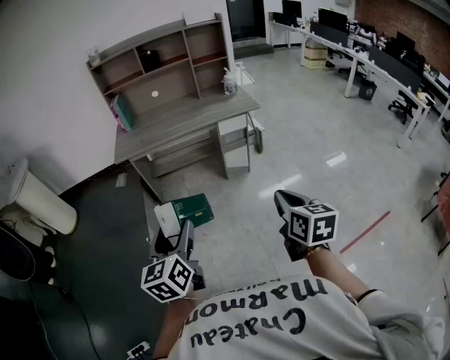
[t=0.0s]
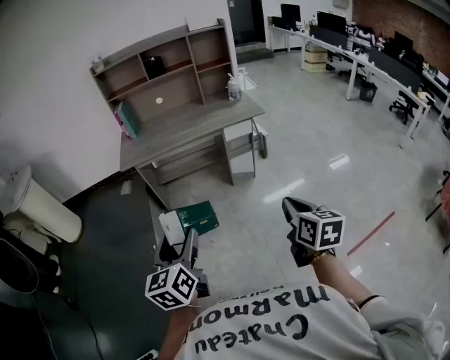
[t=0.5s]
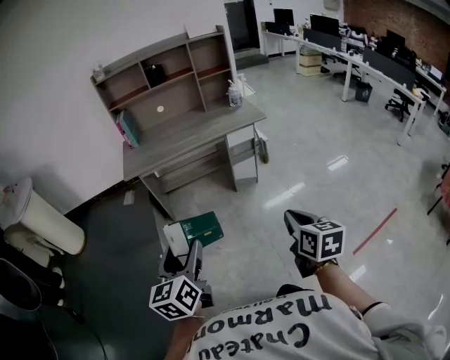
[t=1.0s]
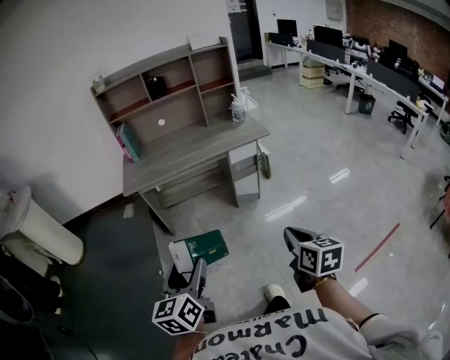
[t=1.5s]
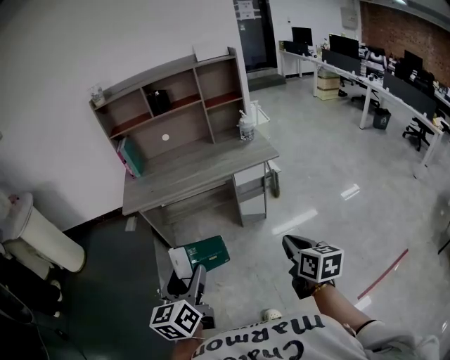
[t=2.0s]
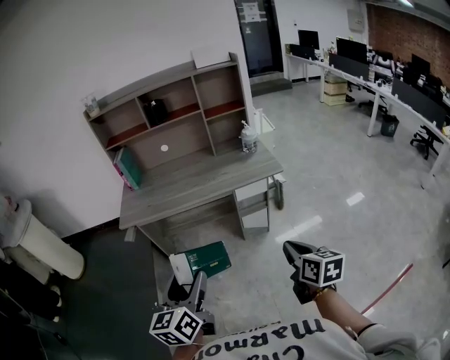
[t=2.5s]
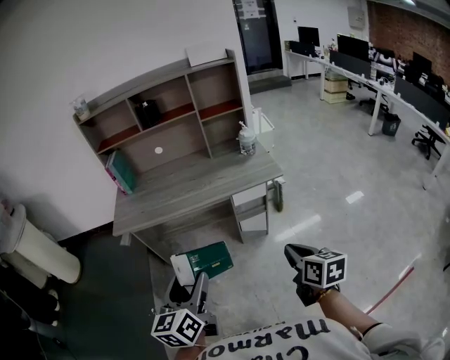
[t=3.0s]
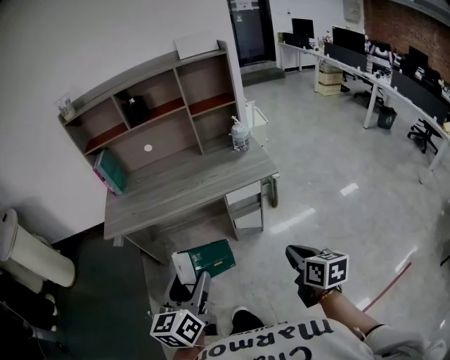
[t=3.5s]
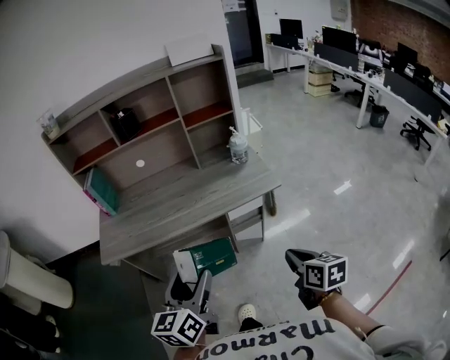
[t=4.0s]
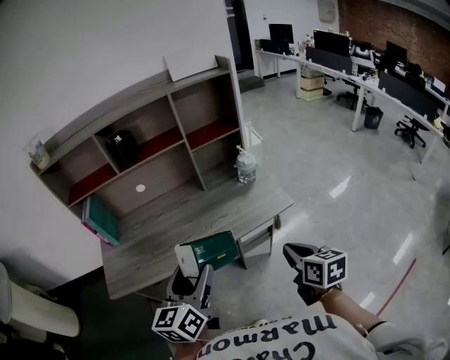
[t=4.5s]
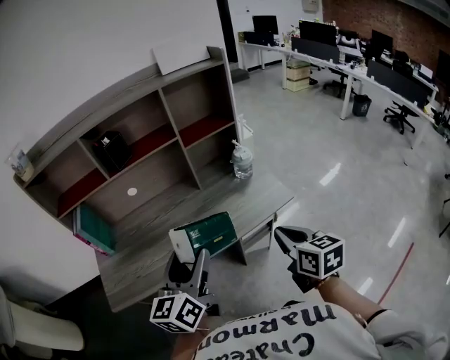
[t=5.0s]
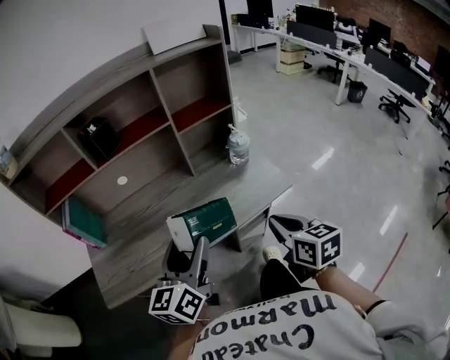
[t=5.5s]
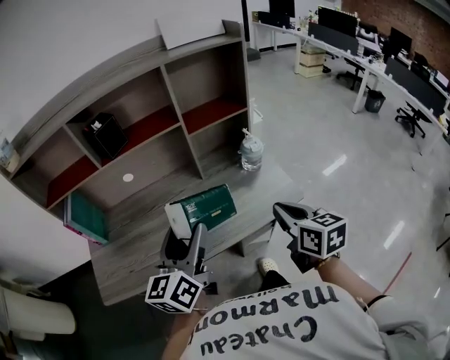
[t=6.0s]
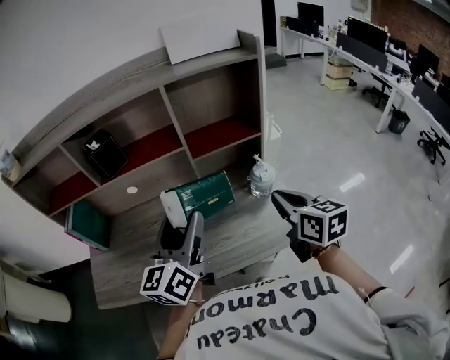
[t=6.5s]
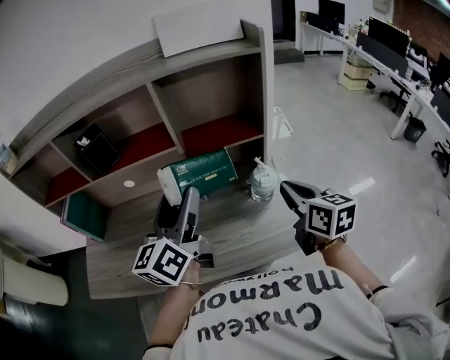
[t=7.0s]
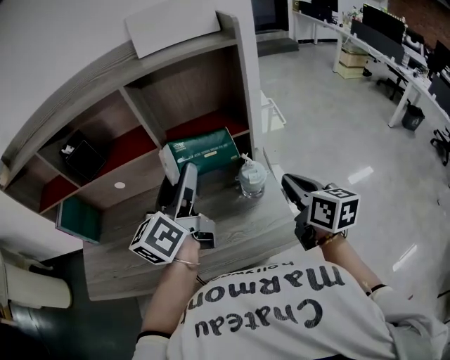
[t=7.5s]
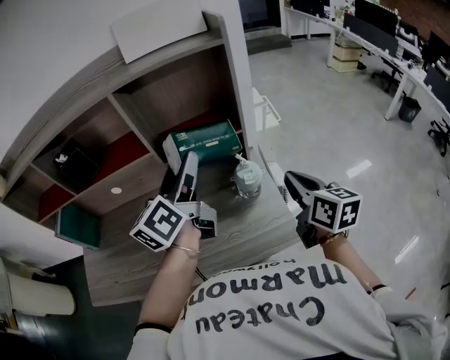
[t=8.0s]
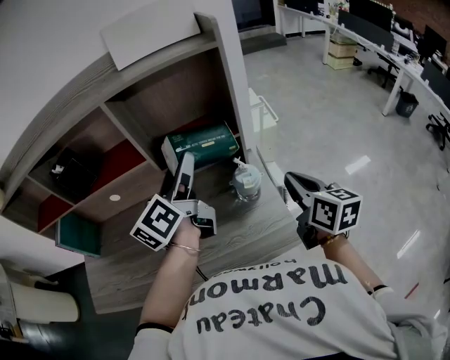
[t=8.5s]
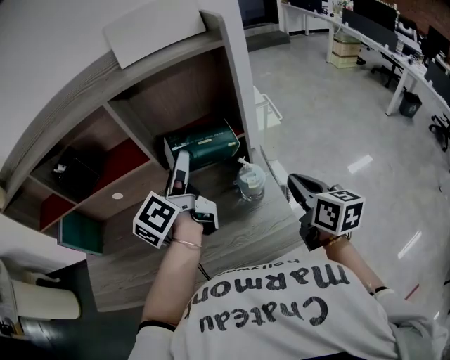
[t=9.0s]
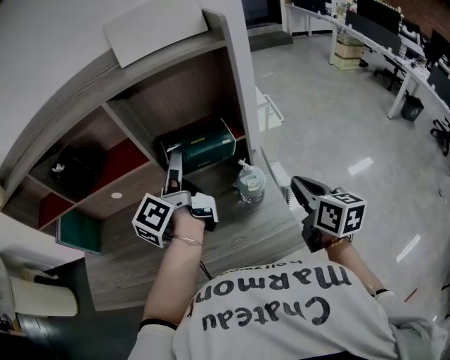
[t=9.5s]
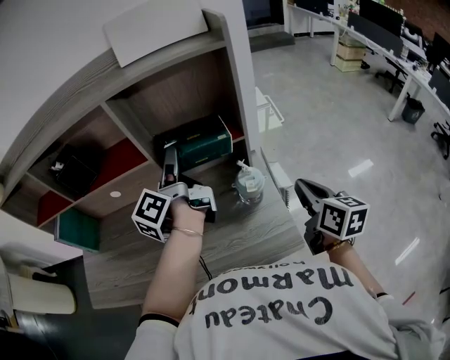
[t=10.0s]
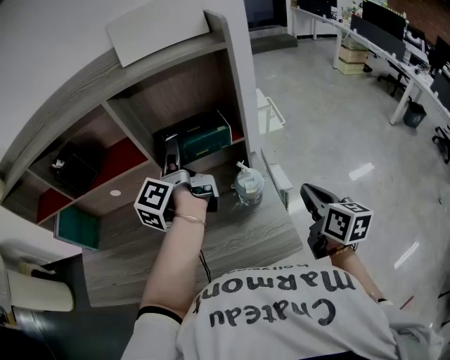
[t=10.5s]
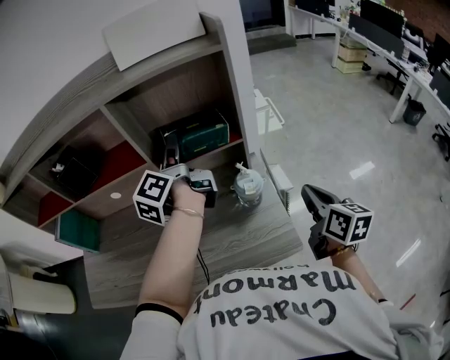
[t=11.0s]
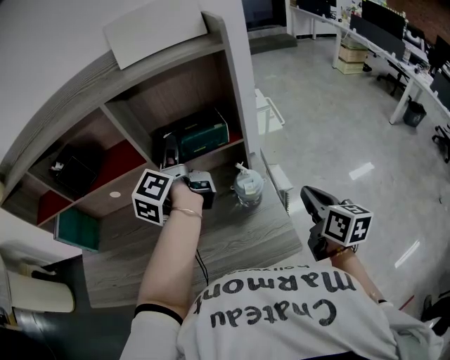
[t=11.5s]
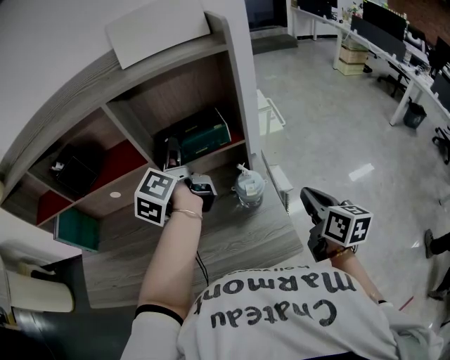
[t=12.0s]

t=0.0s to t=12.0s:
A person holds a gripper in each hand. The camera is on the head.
t=0.0s to t=2.0s: Both grippers move forward, some 15 cm.
t=2.0s to t=4.0s: Both grippers move forward, some 25 cm.
t=4.0s to t=6.0s: The grippers both shift forward by roughly 30 cm.
t=6.0s to t=8.0s: The grippers both shift forward and to the right by some 25 cm.
t=8.0s to t=10.0s: The left gripper goes some 5 cm forward, and swivels about 40 degrees.
t=10.0s to t=12.0s: There are only small adjustments of the grippers.

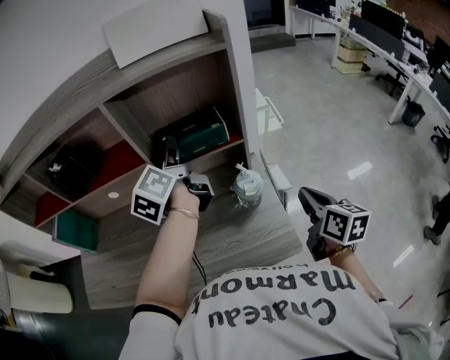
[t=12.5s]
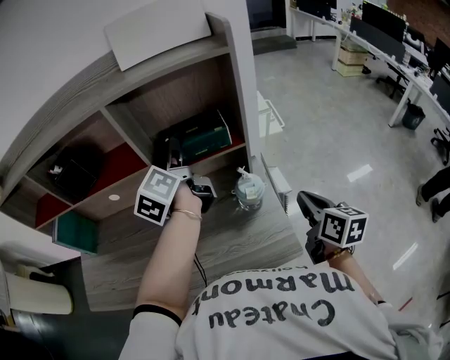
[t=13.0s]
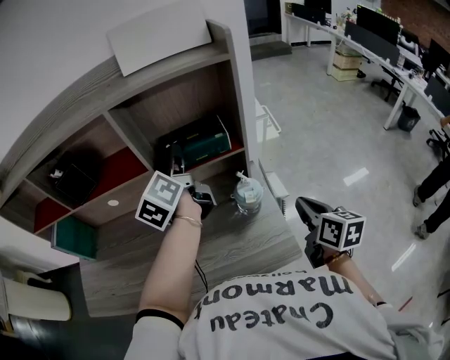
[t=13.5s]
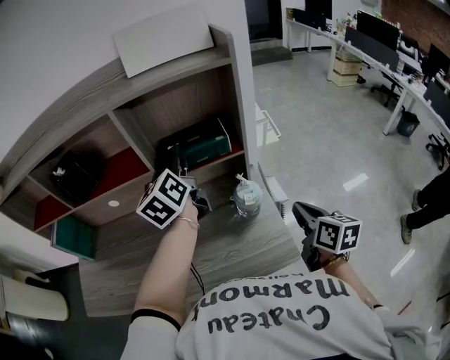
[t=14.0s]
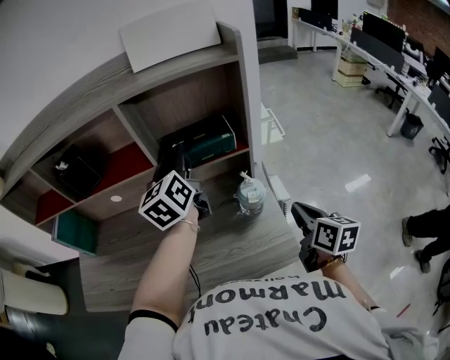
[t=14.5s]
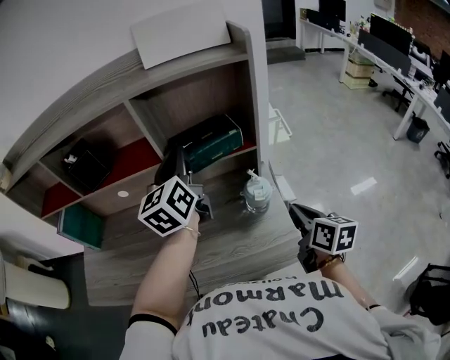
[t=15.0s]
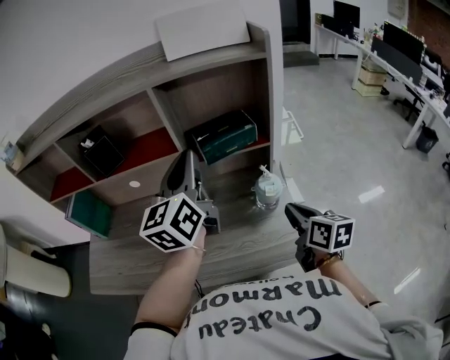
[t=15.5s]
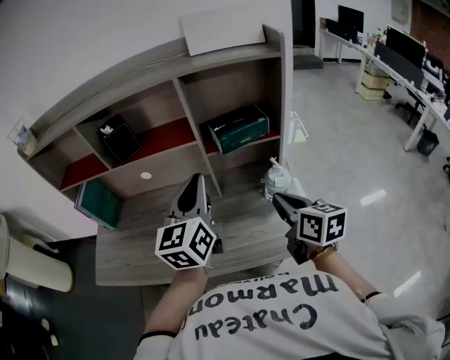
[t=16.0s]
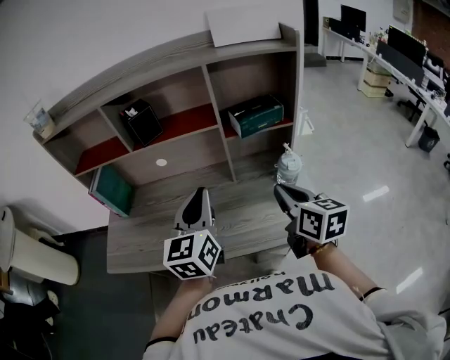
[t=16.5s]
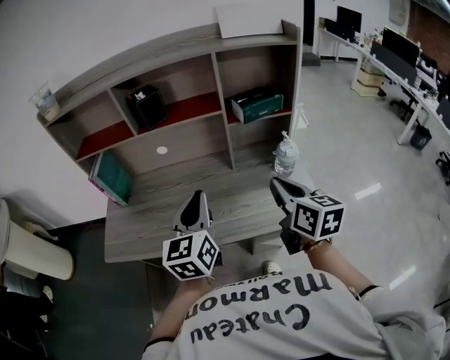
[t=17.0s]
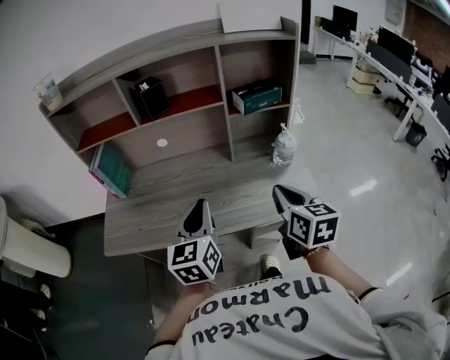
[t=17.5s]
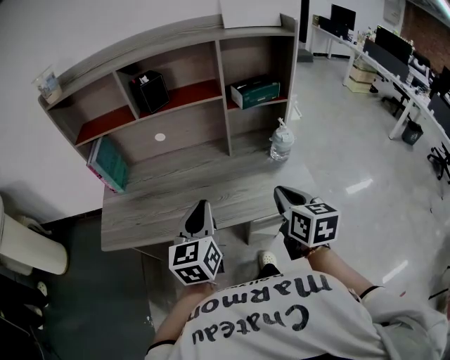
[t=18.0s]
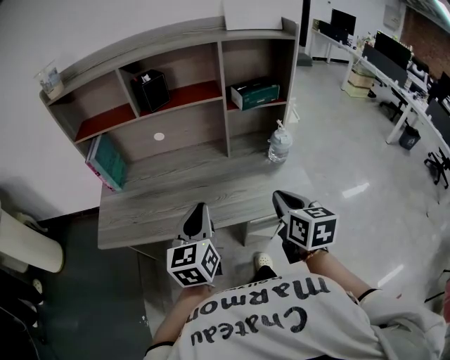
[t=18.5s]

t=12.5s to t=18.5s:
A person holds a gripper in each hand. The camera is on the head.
t=12.5s to t=14.5s: The left gripper swivels roughly 30 degrees, and closes.
t=14.5s to t=16.5s: The left gripper is displaced backward and to the left by approximately 25 cm, while the right gripper heads to the left and upward, covering approximately 20 cm.
t=16.5s to t=18.5s: The left gripper shifts approximately 15 cm backward, downward and to the left. Meanwhile the right gripper heads backward, covering roughly 10 cm.

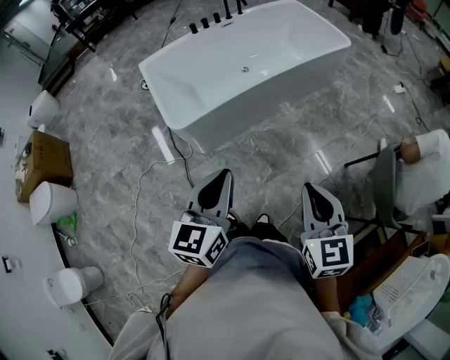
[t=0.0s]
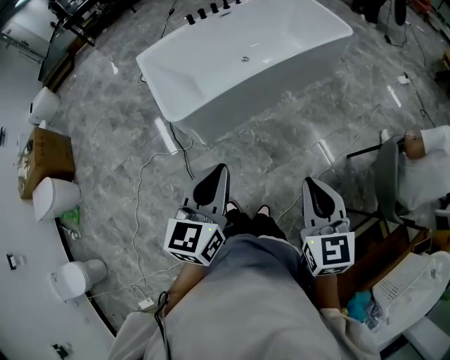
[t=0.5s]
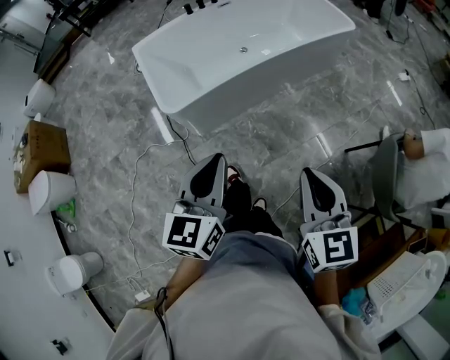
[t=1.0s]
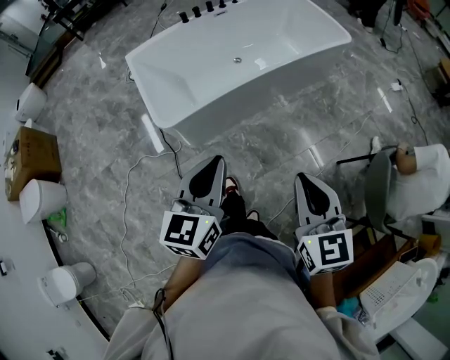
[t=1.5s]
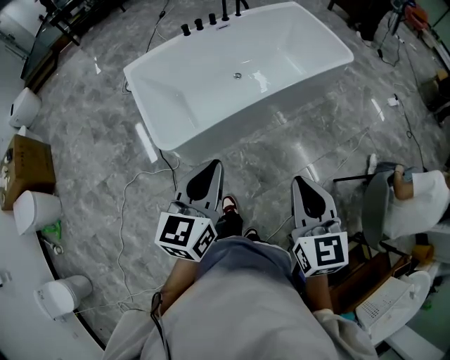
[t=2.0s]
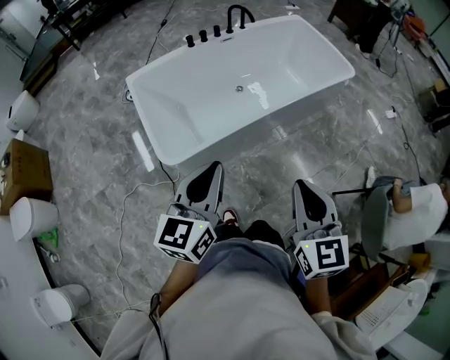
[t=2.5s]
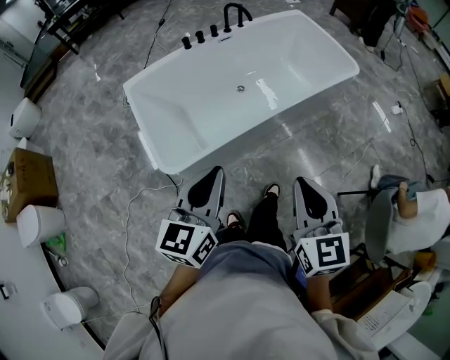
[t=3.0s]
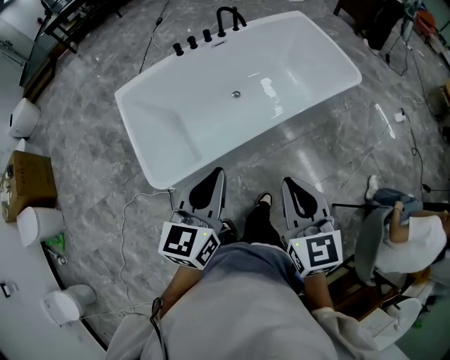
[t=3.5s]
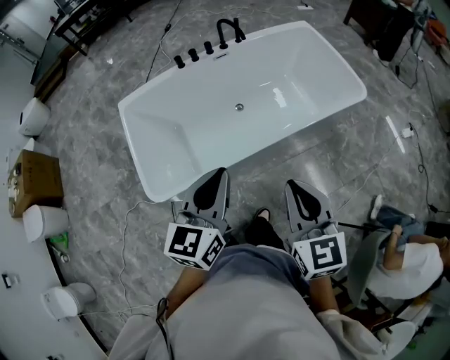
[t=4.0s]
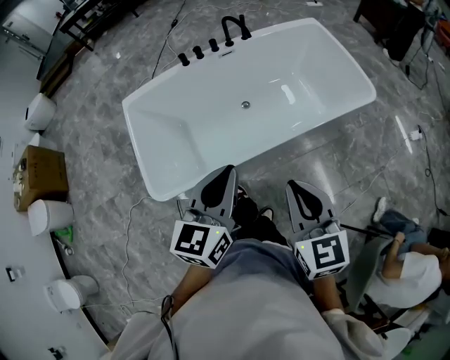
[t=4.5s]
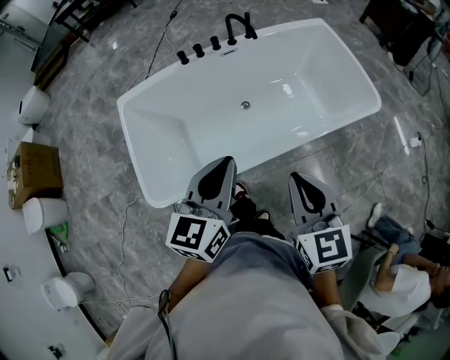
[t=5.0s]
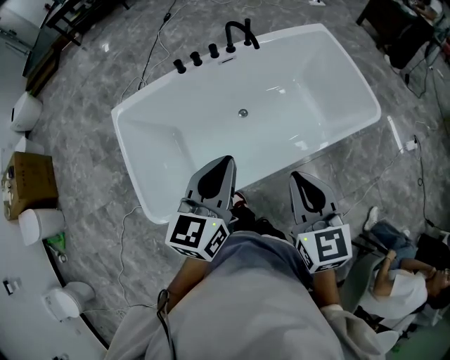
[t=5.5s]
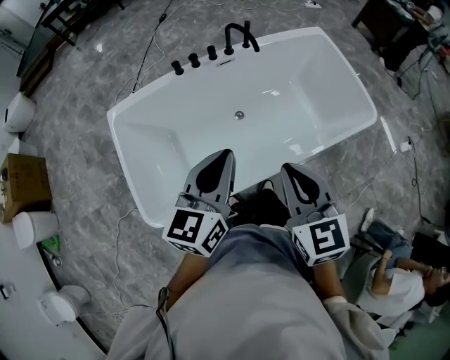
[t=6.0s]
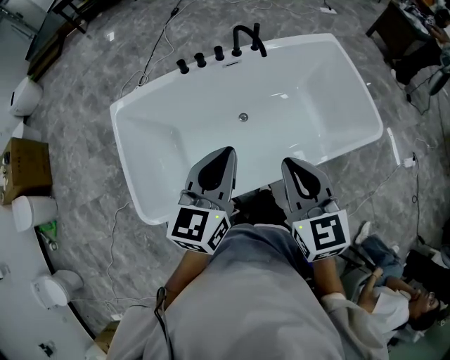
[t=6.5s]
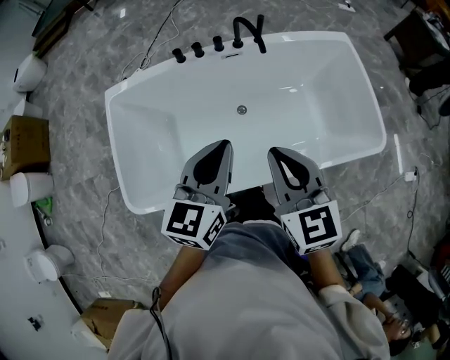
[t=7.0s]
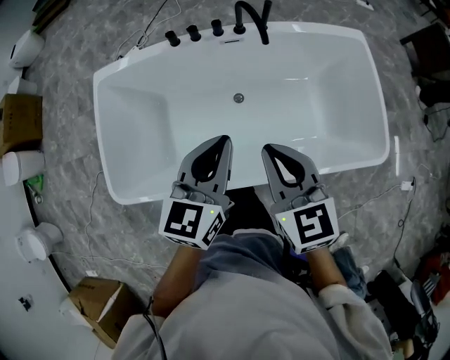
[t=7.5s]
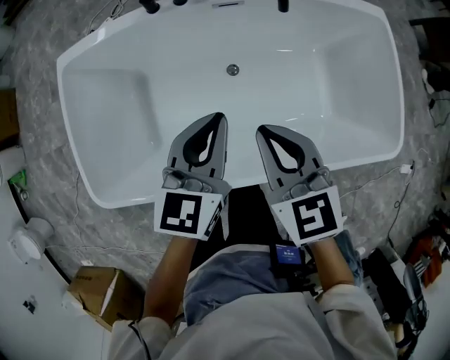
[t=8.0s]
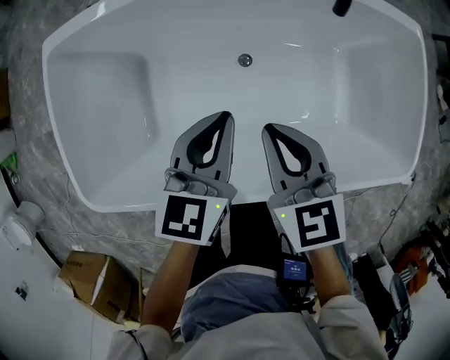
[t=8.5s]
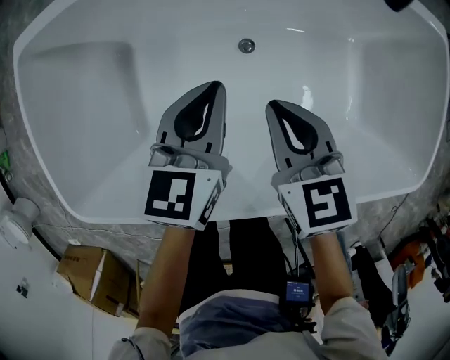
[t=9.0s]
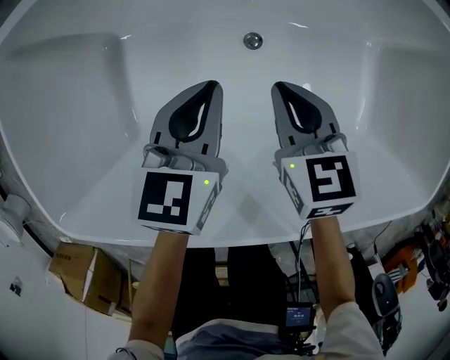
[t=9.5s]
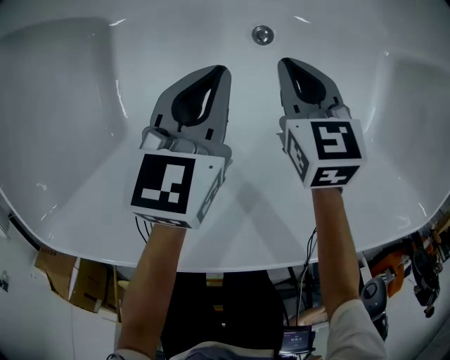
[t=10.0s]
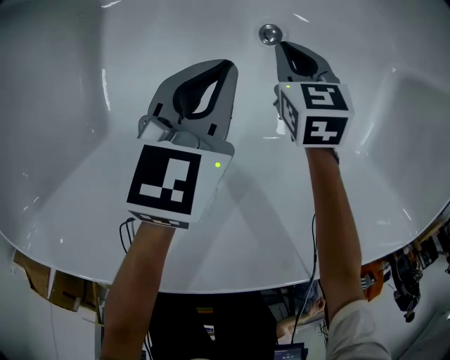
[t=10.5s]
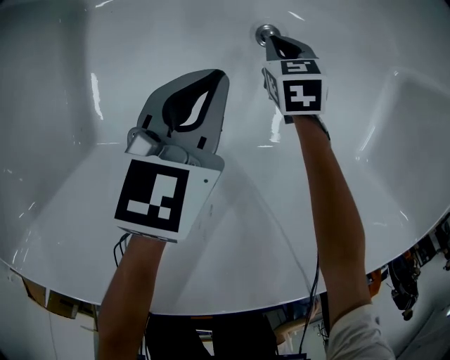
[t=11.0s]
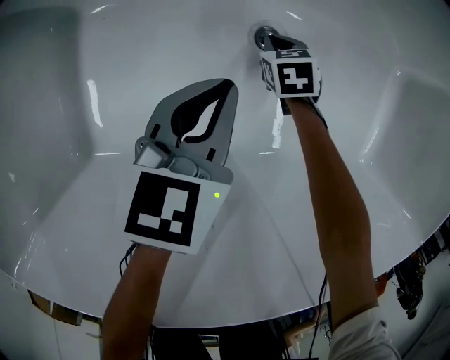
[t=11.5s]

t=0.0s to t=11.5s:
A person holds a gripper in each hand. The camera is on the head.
t=0.0s to t=2.0s: Both grippers move forward, some 20 cm.
t=2.0s to t=4.0s: The left gripper goes roughly 30 cm forward and to the right. Meanwhile the right gripper moves forward, some 30 cm.
t=4.0s to t=6.0s: The two grippers go roughly 20 cm forward.
t=6.0s to t=7.5s: Both grippers travel together forward, to the right and downward, approximately 20 cm. The right gripper turns by roughly 20 degrees.
t=7.5s to t=9.5s: The left gripper is displaced downward by about 40 cm, while the right gripper moves downward and forward, some 50 cm.
t=9.5s to t=11.5s: The left gripper is displaced downward by some 20 cm. Meanwhile the right gripper shifts about 35 cm downward, and swivels roughly 20 degrees.
